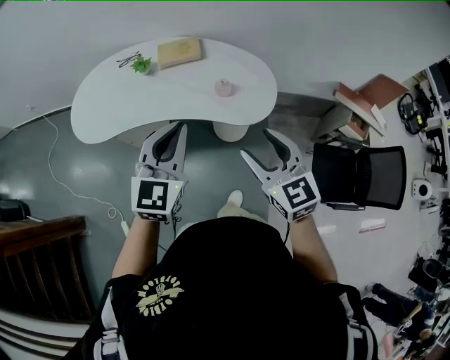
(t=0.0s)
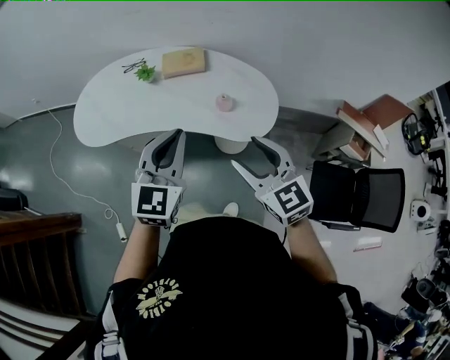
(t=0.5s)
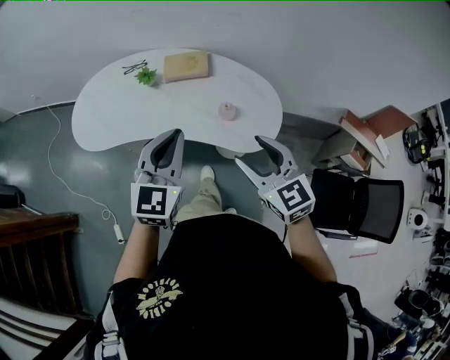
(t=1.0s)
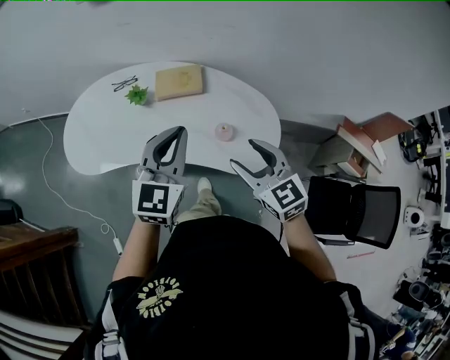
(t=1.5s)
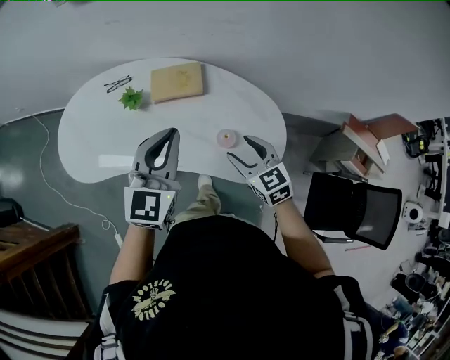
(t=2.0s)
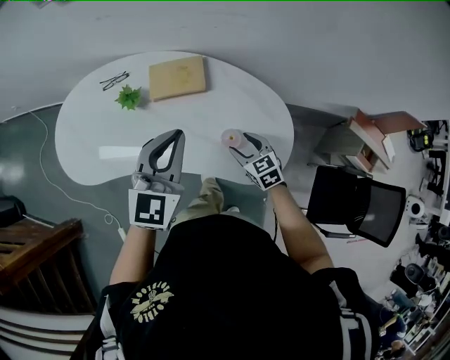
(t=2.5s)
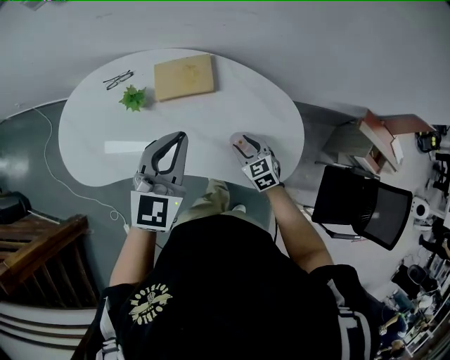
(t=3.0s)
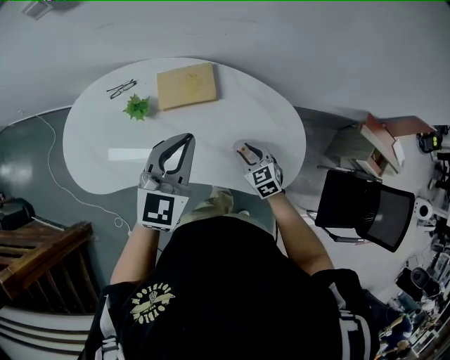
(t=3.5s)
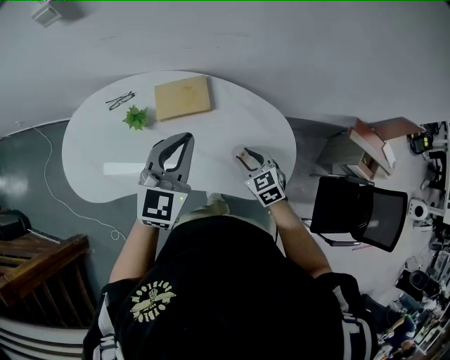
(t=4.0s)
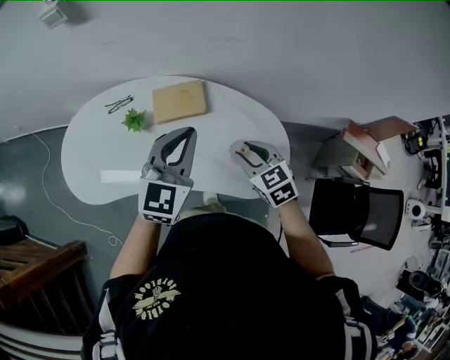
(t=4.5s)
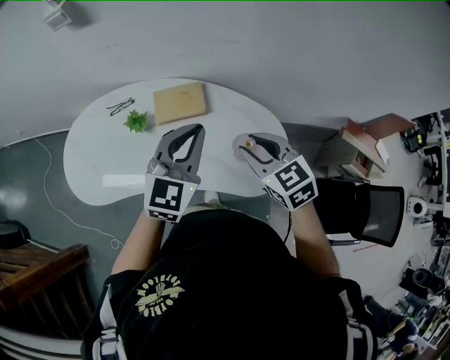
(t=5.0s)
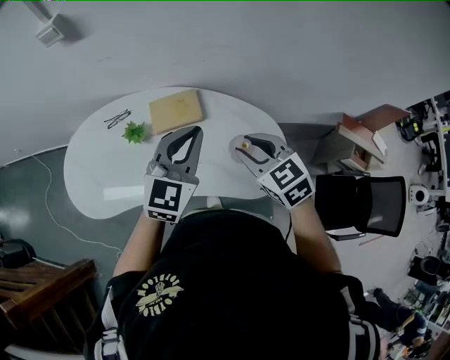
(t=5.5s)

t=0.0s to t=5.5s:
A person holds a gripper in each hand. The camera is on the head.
t=0.0s to t=2.0s: The left gripper moves forward, some 25 cm, while the right gripper is displaced forward and downward by about 35 cm.
t=2.0s to t=3.5s: The right gripper goes about 15 cm downward, and closes. The left gripper goes roughly 10 cm forward and downward.
t=3.5s to t=5.5s: The left gripper travels upward by some 5 cm, while the right gripper travels upward by about 30 cm.

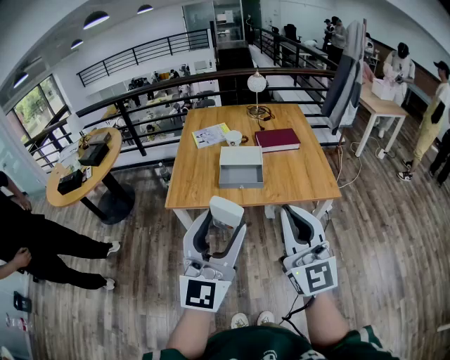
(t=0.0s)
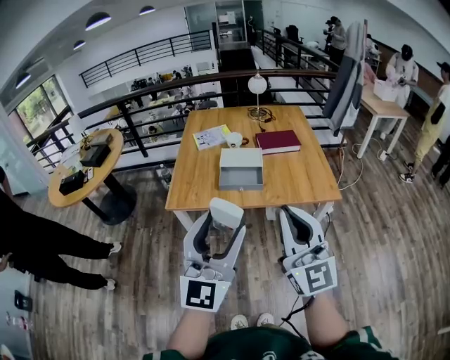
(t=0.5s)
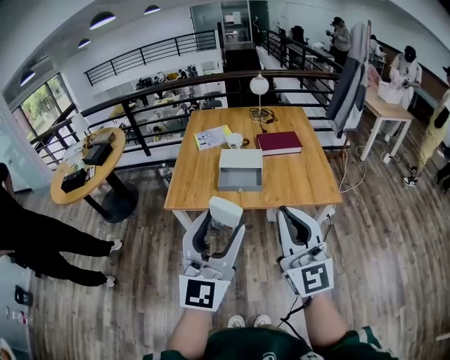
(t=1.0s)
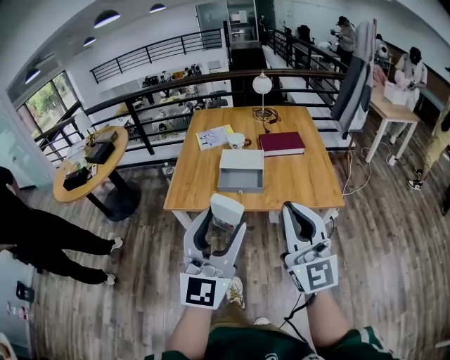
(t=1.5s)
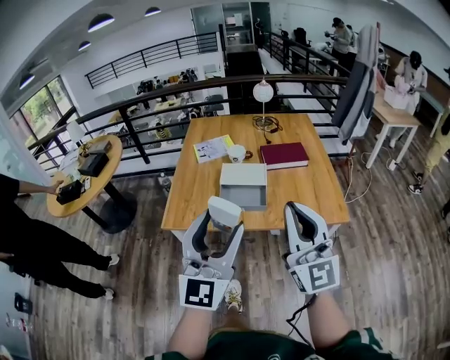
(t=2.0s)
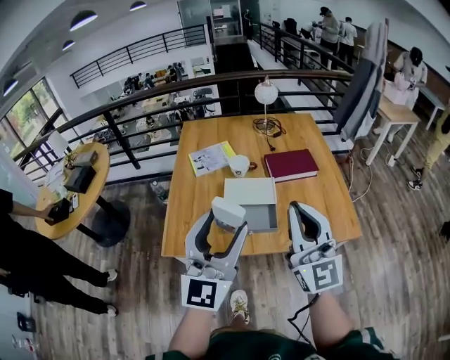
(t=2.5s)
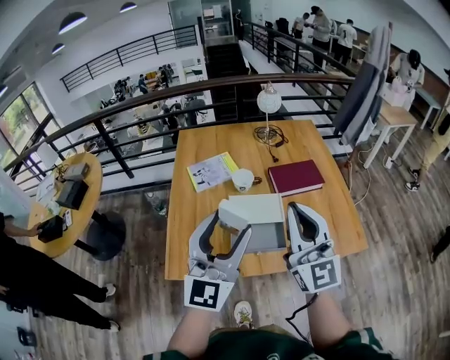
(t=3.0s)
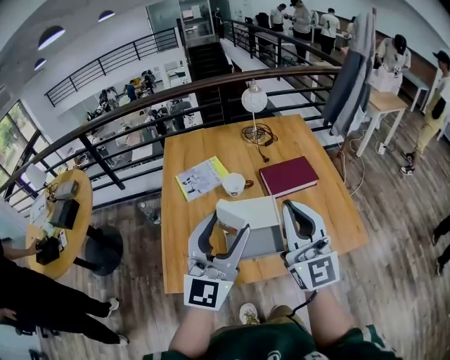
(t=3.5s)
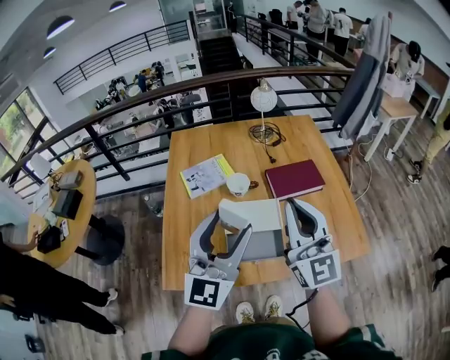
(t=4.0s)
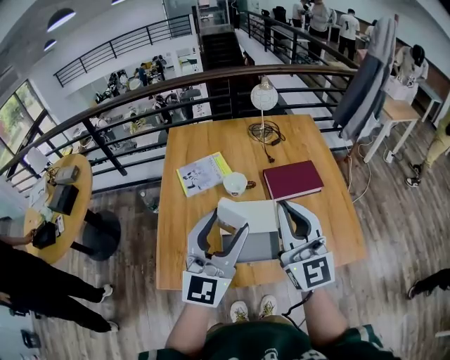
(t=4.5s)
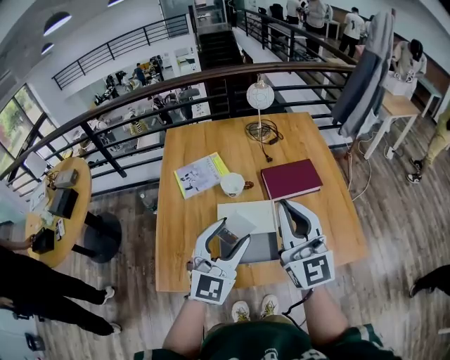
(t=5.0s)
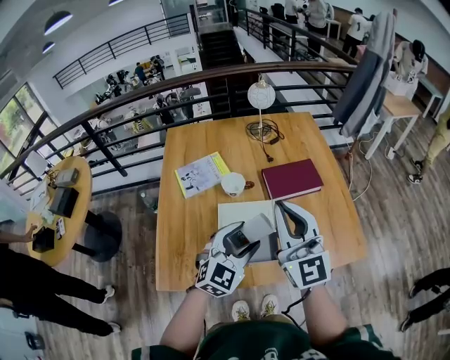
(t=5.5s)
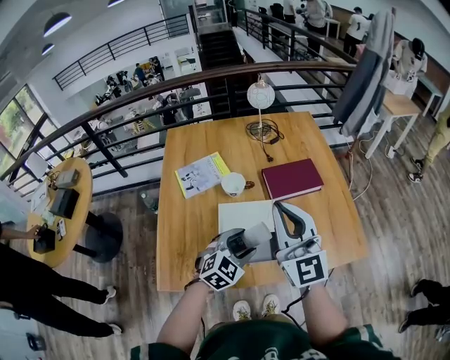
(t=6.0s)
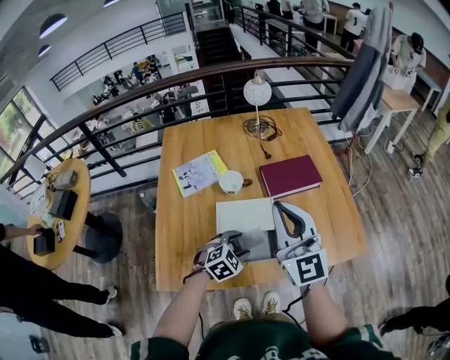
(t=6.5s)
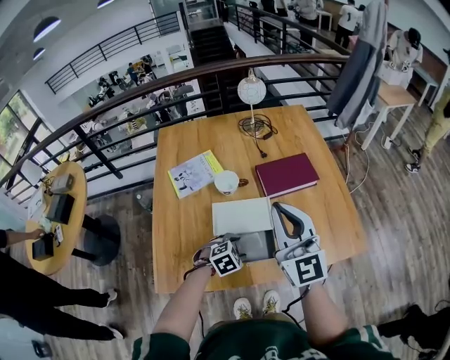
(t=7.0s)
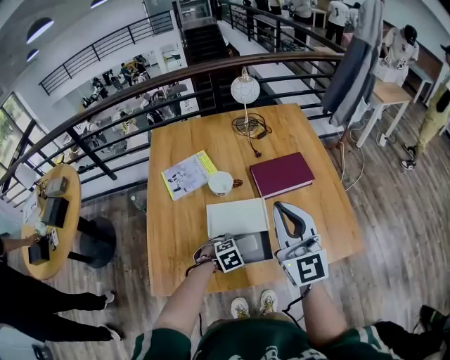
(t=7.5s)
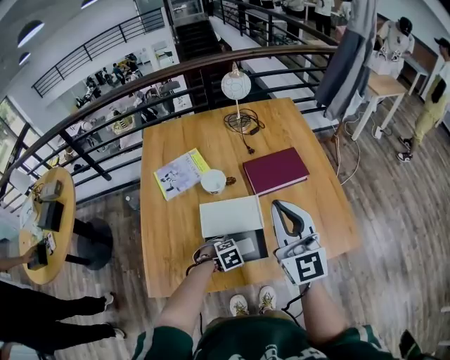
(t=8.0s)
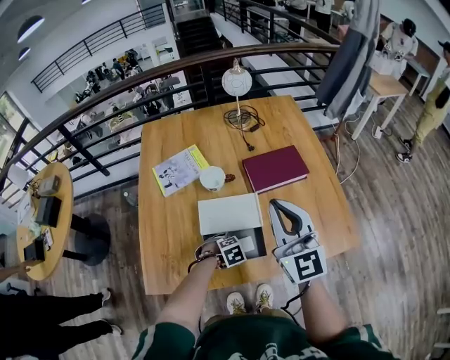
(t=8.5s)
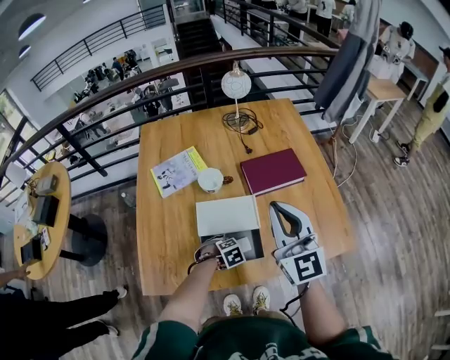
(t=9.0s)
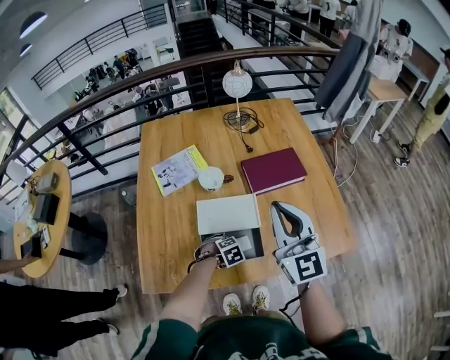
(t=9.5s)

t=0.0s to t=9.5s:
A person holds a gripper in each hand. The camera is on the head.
t=0.0s to t=2.0s: Both grippers travel together forward, roughly 15 cm.
t=2.0s to t=4.0s: Both grippers move forward, roughly 30 cm.
t=4.0s to t=5.5s: The left gripper goes roughly 15 cm downward and to the right, and points its fingers roughly 30 degrees further downward.
t=5.5s to t=7.5s: The right gripper ends up some 5 cm from where it was, while the left gripper moves downward, some 25 cm, and tips its fingers downward by about 50 degrees.
t=7.5s to t=9.5s: The left gripper is displaced downward by roughly 5 cm.

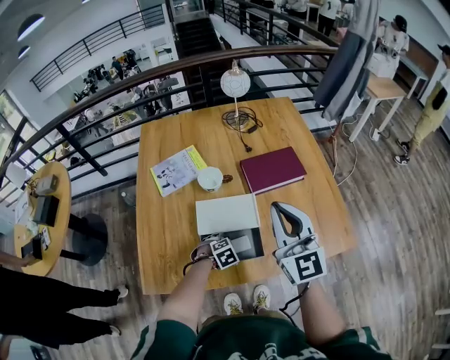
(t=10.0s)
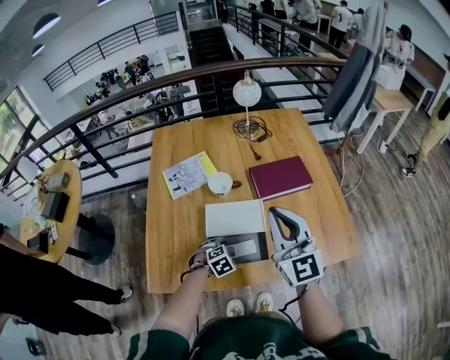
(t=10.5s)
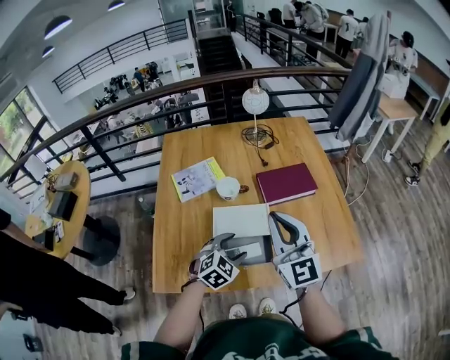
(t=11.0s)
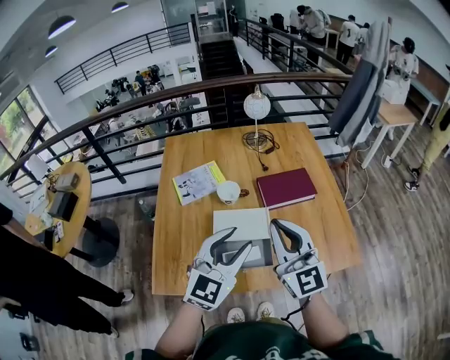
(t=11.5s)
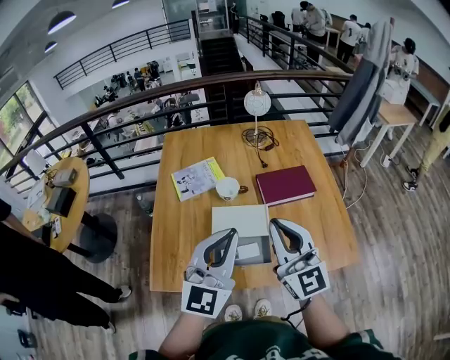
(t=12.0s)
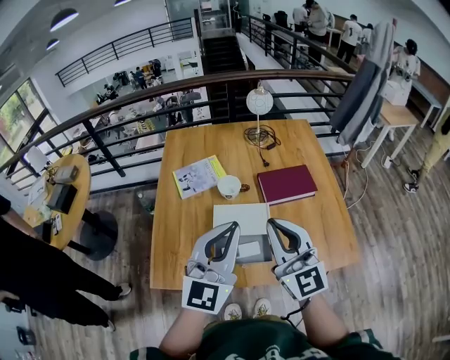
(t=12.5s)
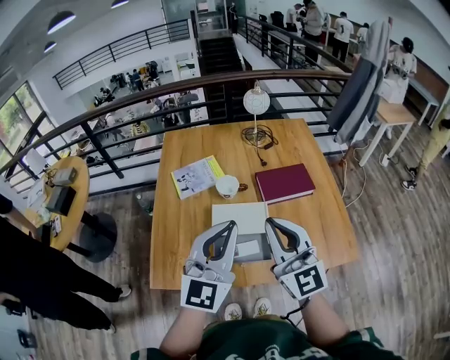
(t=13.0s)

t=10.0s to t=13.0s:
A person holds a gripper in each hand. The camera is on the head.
t=10.0s to t=11.5s: The right gripper heads backward, covering approximately 5 cm. Meanwhile the left gripper travels upward by roughly 40 cm, points its fingers approximately 70 degrees further upward, and closes.
t=11.5s to t=13.0s: The left gripper goes about 5 cm upward, and closes up.

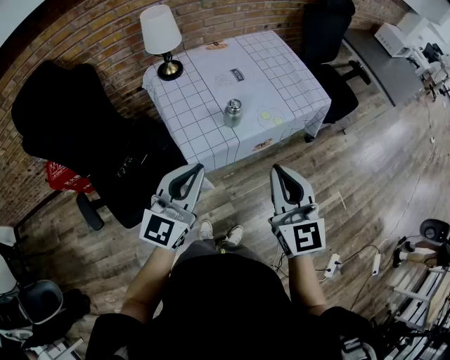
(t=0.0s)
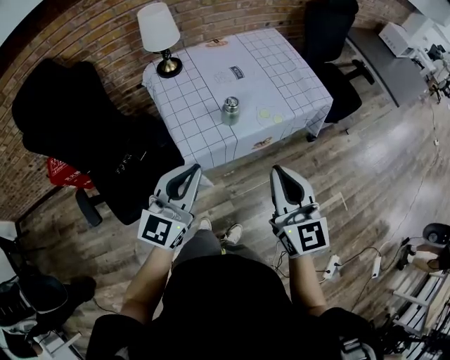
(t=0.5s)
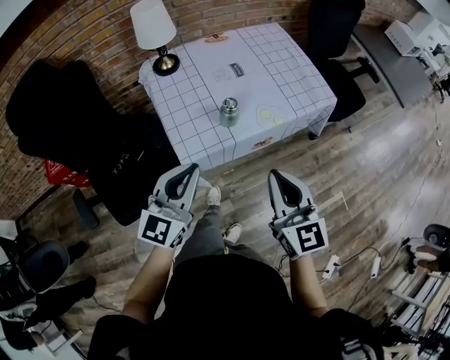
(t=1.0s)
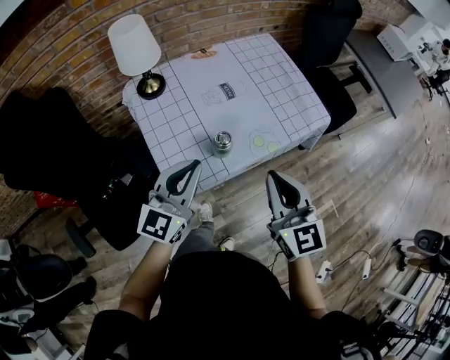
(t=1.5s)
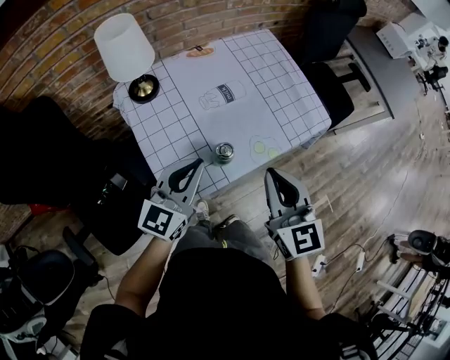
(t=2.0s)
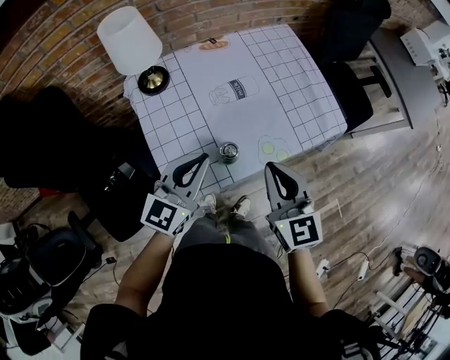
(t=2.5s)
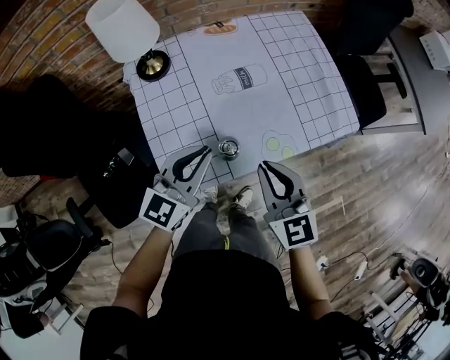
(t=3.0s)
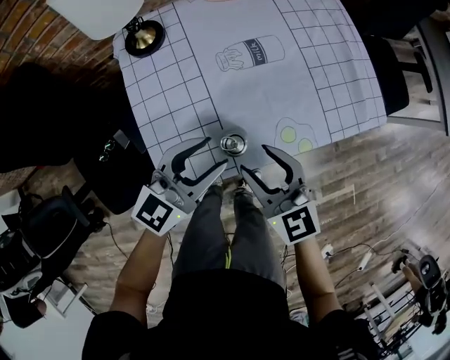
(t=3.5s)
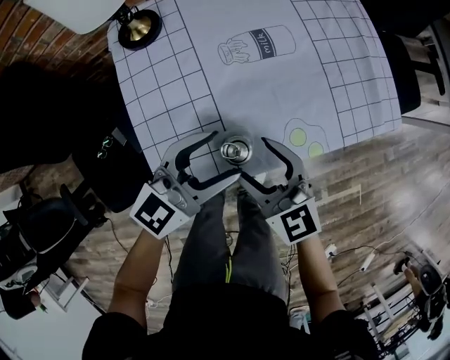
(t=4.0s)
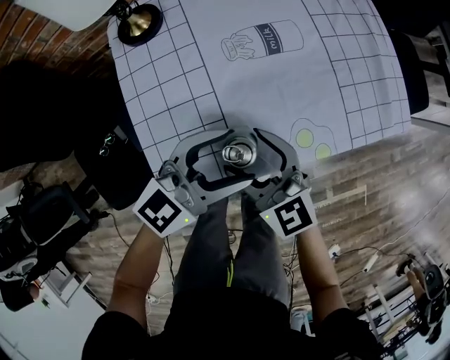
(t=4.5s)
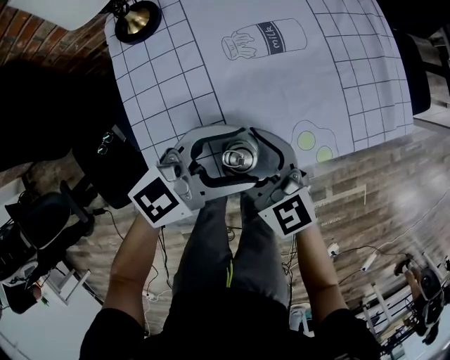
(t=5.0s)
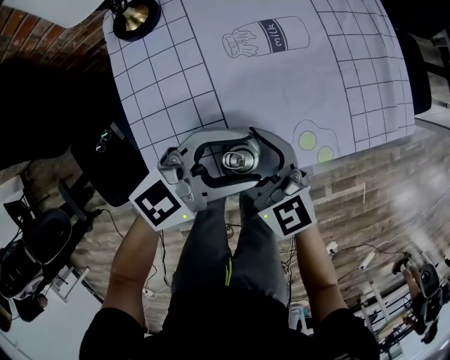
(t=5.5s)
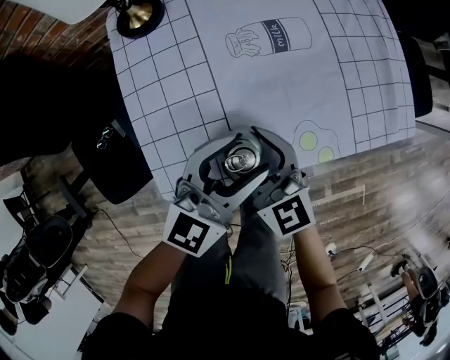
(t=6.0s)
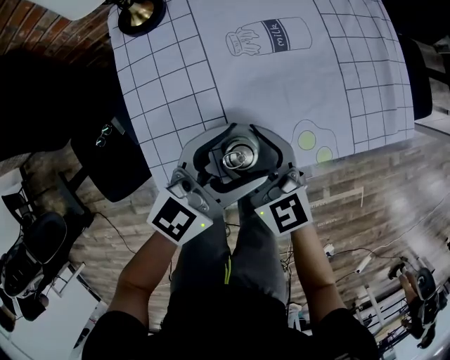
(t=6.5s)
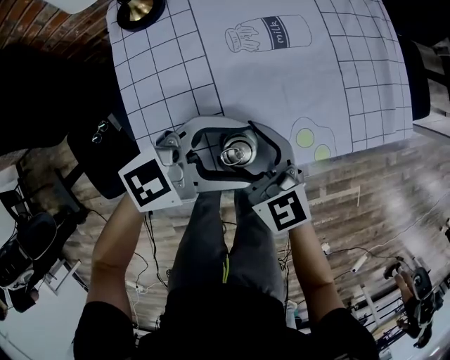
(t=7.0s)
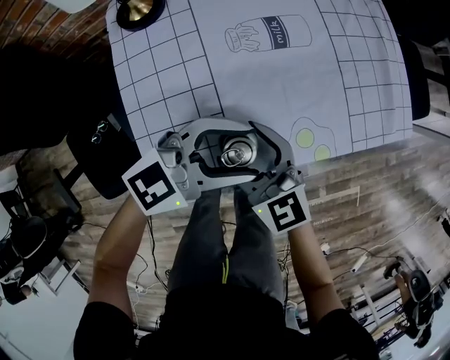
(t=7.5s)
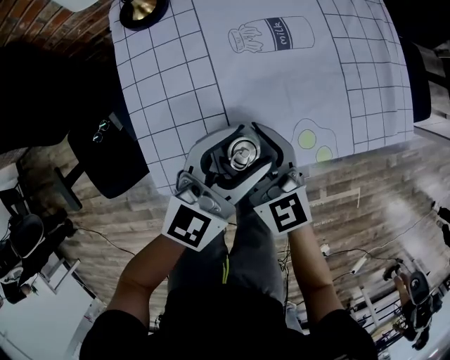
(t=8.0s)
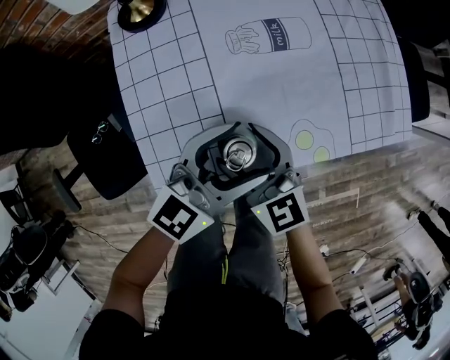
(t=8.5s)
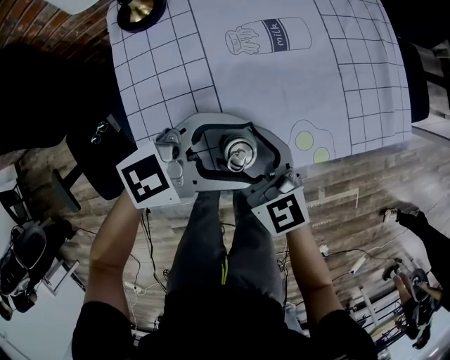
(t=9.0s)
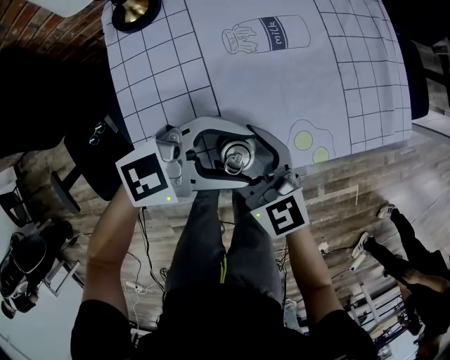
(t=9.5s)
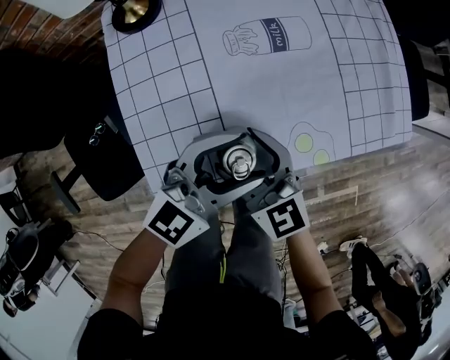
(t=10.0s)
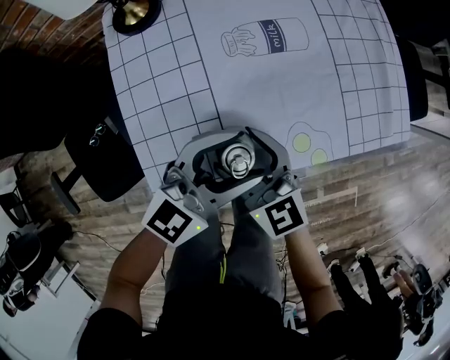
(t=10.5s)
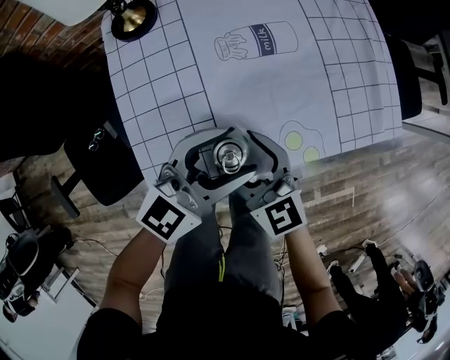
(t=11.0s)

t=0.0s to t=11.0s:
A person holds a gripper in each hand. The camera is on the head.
t=0.0s to t=2.0s: The two grippers go some 20 cm forward.
t=2.0s to t=3.5s: The right gripper goes some 15 cm downward, rotates about 30 degrees, and opens its fingers, while the left gripper goes approximately 10 cm downward, and opens.
t=3.5s to t=5.5s: The left gripper is displaced to the right by approximately 5 cm, and turns by about 20 degrees, while the right gripper travels downward and to the left by some 10 cm.
t=9.0s to t=11.0s: The left gripper swivels roughly 30 degrees.
